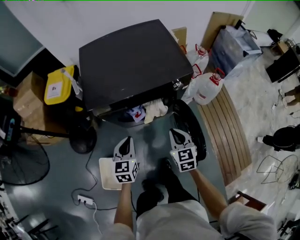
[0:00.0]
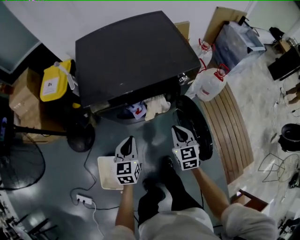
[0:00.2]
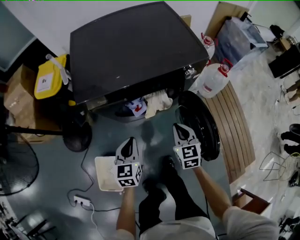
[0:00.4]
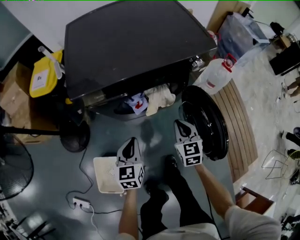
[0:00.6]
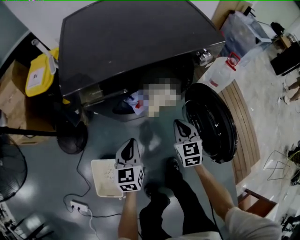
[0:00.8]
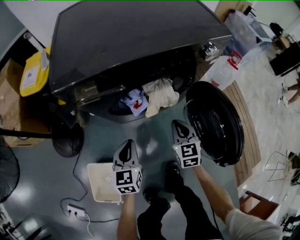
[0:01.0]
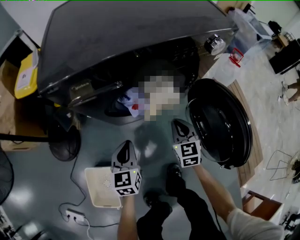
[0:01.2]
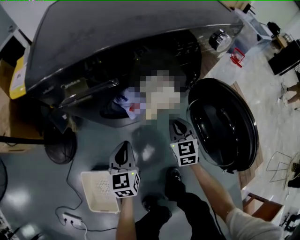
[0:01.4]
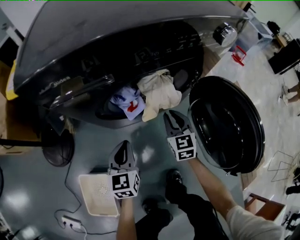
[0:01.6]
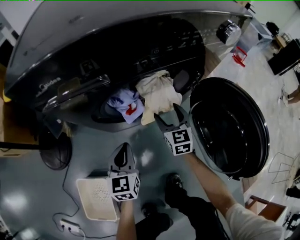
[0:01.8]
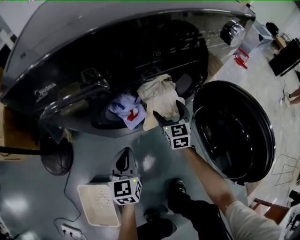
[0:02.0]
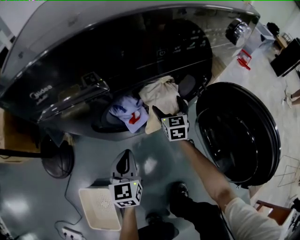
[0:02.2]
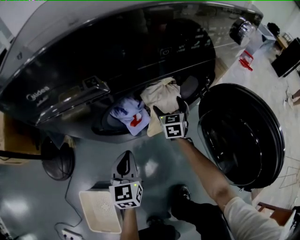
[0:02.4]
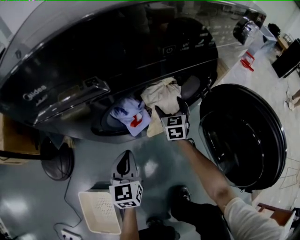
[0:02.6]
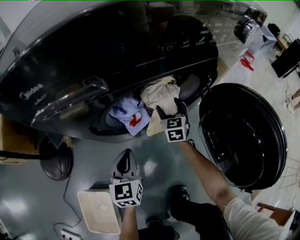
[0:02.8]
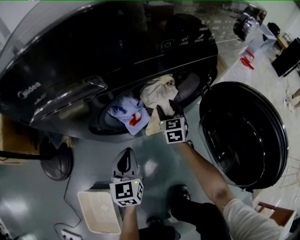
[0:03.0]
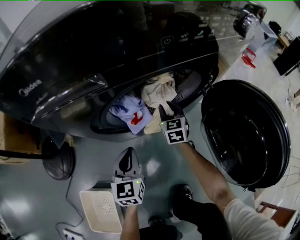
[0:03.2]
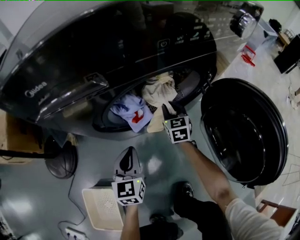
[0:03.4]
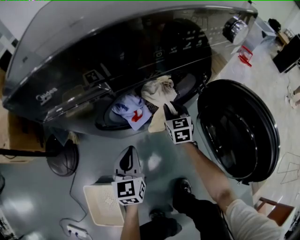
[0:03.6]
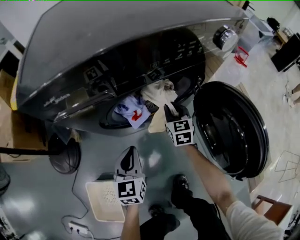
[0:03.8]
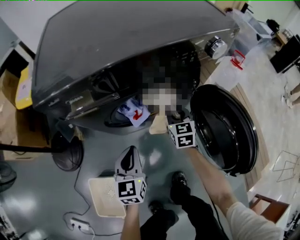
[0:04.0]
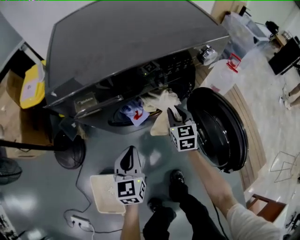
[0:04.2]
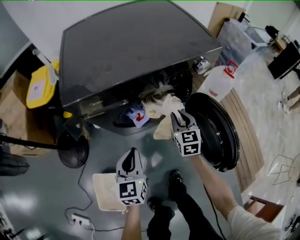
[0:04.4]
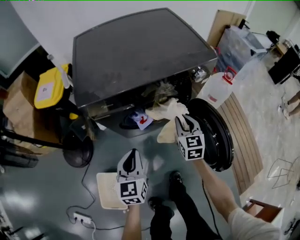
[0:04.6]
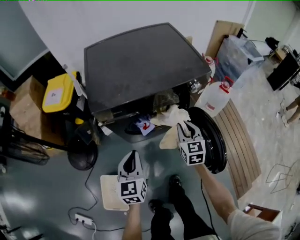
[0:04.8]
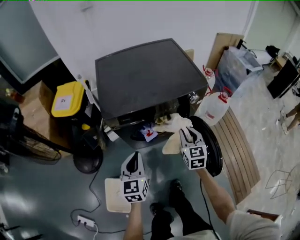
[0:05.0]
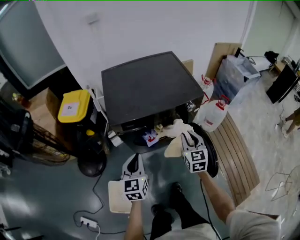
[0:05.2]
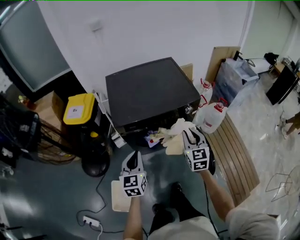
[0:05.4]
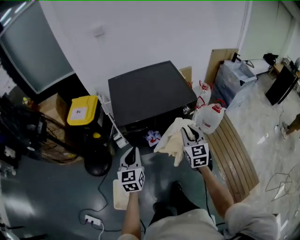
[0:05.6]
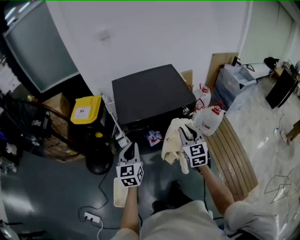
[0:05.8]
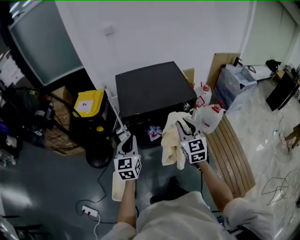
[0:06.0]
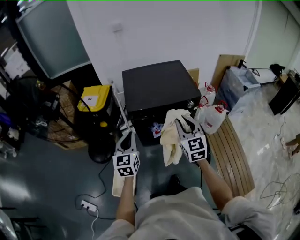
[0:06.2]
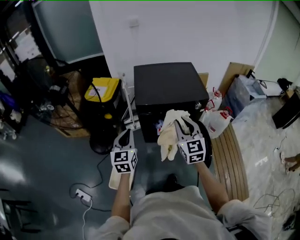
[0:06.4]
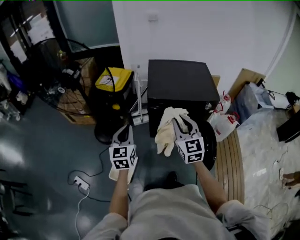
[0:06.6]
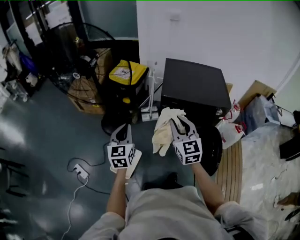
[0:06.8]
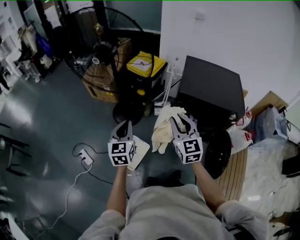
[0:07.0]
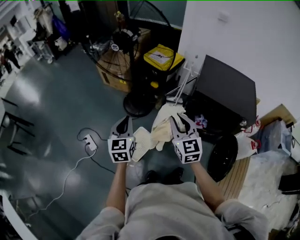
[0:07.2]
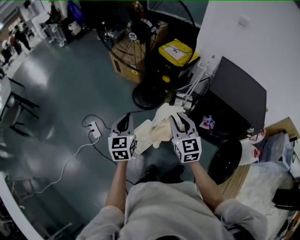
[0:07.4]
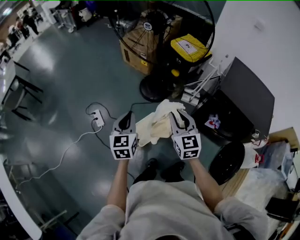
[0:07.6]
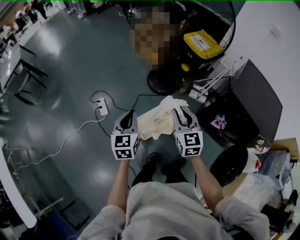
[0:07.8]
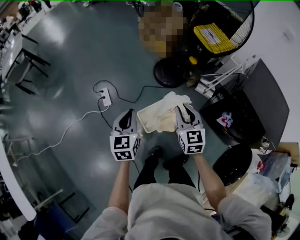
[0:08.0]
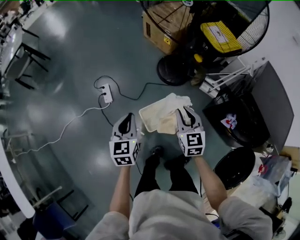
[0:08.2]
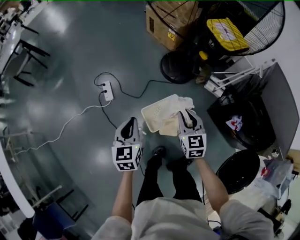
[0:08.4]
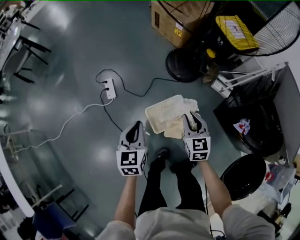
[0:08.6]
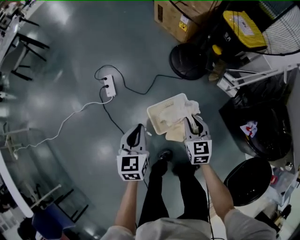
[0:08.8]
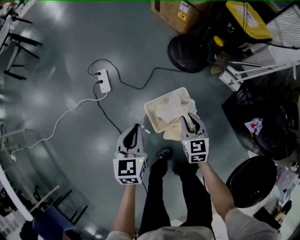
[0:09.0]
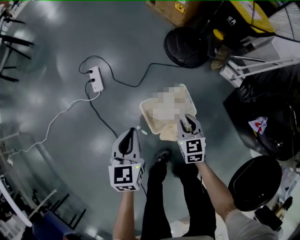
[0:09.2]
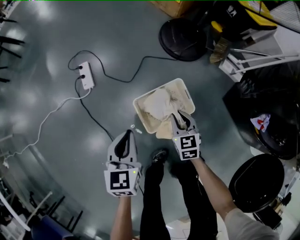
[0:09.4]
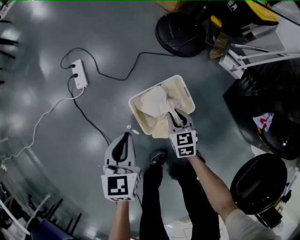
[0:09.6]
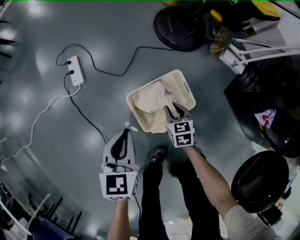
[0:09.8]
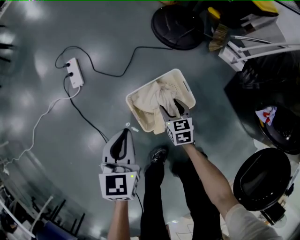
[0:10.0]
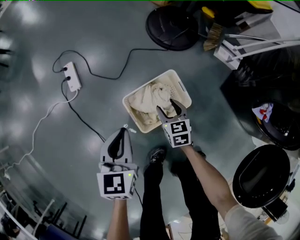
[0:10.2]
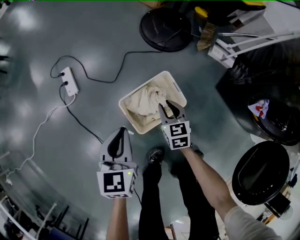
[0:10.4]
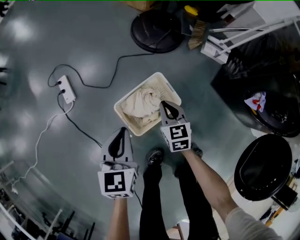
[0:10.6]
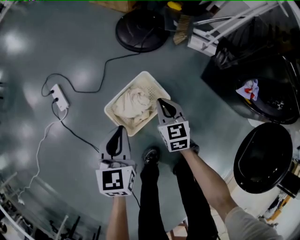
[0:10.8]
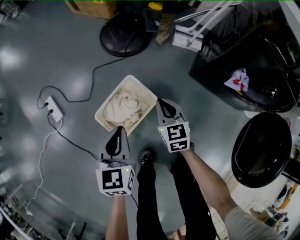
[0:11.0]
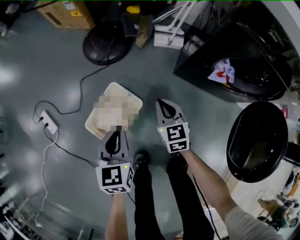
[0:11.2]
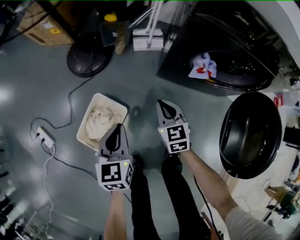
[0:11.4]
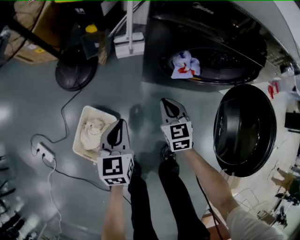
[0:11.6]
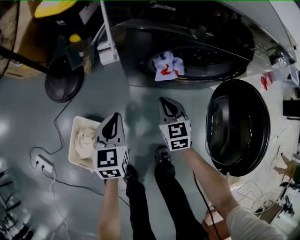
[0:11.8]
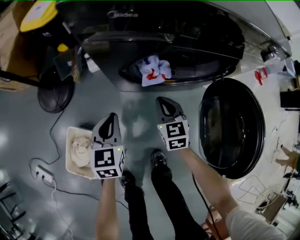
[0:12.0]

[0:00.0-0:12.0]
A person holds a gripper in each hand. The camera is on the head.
0:00.0 to 0:01.6: Both grippers travel together downward, some 35 cm.
0:01.6 to 0:03.0: The left gripper moves downward, about 10 cm; the right gripper is displaced forward and downward by approximately 20 cm, and opens its fingers.
0:03.0 to 0:04.4: The right gripper is displaced upward and backward by roughly 30 cm, while the left gripper moves upward, approximately 25 cm.
0:04.4 to 0:06.0: The grippers both shift upward by about 50 cm. The right gripper changes its angle by about 20 degrees.
0:06.0 to 0:07.6: The pair of grippers is taken approximately 50 cm. The right gripper turns by approximately 50 degrees. The left gripper rotates approximately 50 degrees.
0:07.6 to 0:09.0: Both grippers move downward, about 40 cm. The right gripper changes its angle by roughly 20 degrees.
0:09.0 to 0:10.4: Both grippers move downward, some 20 cm.
0:10.4 to 0:12.0: The two grippers travel together, approximately 60 cm. The right gripper turns by some 40 degrees. The left gripper rotates roughly 50 degrees.

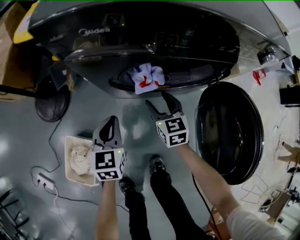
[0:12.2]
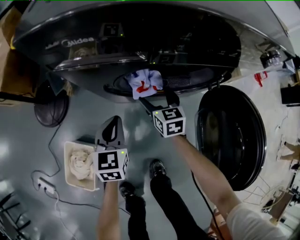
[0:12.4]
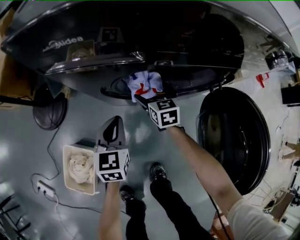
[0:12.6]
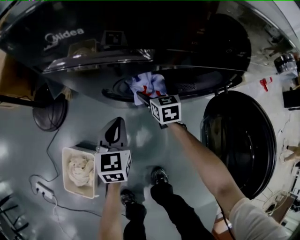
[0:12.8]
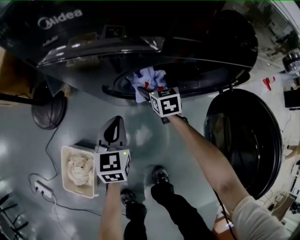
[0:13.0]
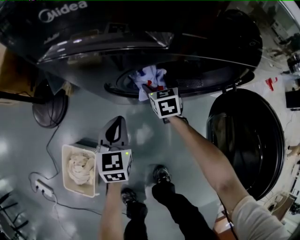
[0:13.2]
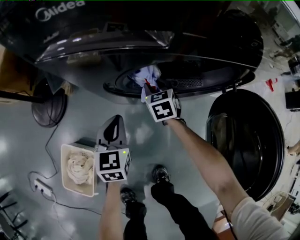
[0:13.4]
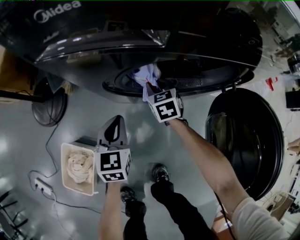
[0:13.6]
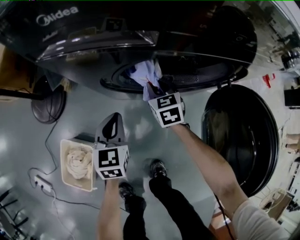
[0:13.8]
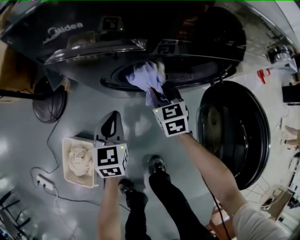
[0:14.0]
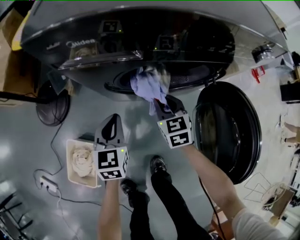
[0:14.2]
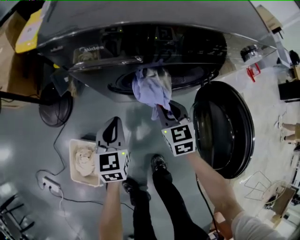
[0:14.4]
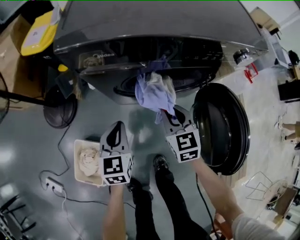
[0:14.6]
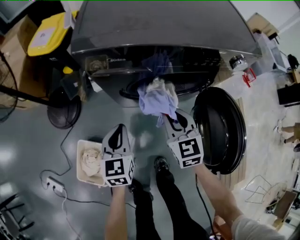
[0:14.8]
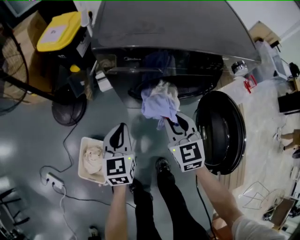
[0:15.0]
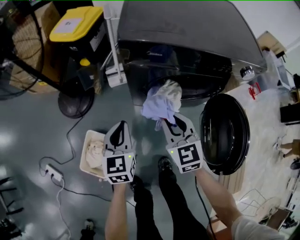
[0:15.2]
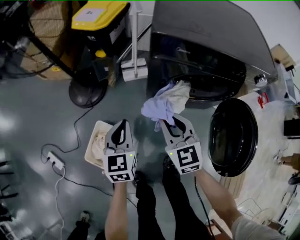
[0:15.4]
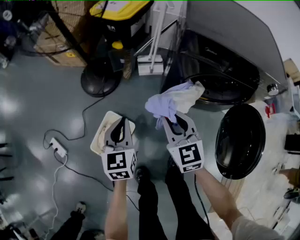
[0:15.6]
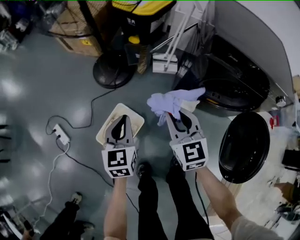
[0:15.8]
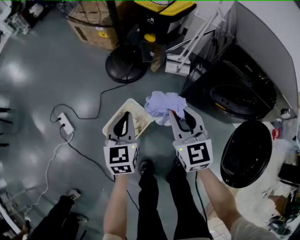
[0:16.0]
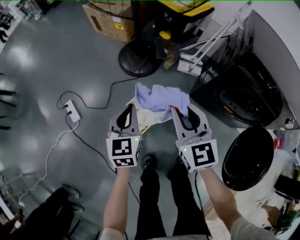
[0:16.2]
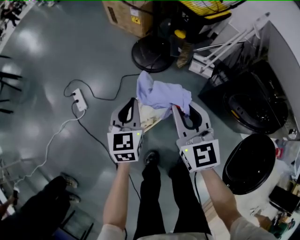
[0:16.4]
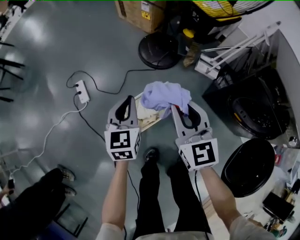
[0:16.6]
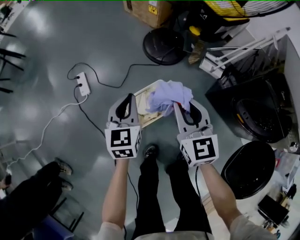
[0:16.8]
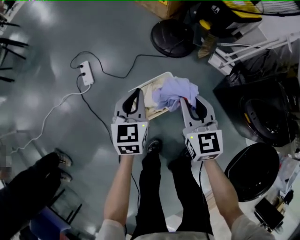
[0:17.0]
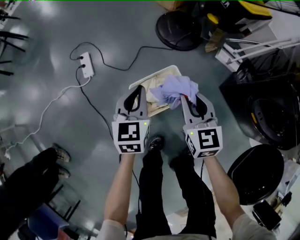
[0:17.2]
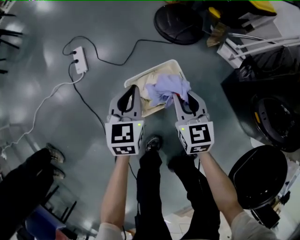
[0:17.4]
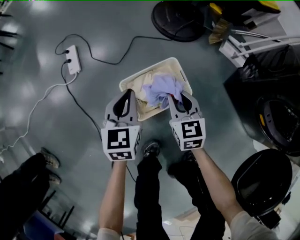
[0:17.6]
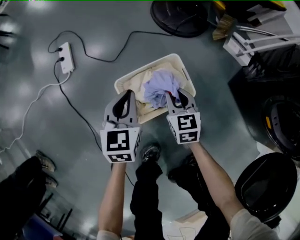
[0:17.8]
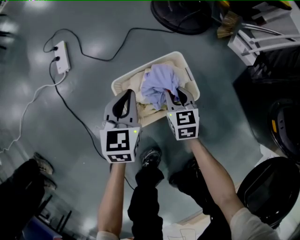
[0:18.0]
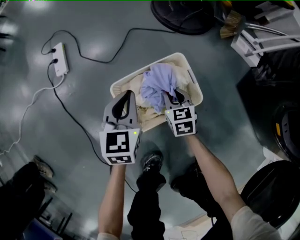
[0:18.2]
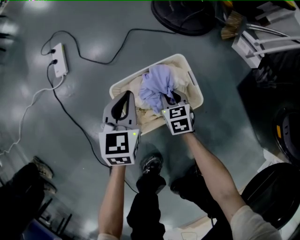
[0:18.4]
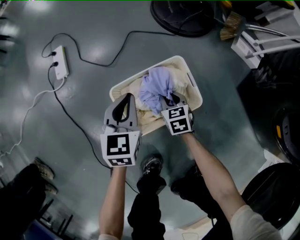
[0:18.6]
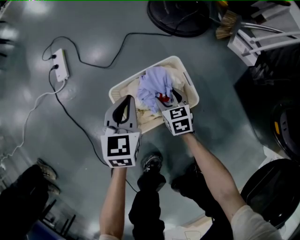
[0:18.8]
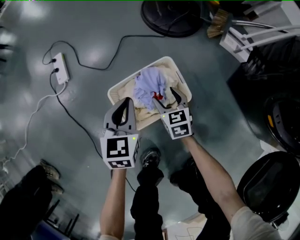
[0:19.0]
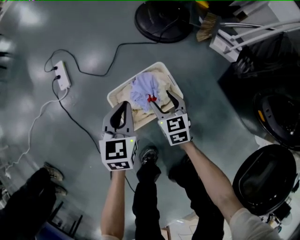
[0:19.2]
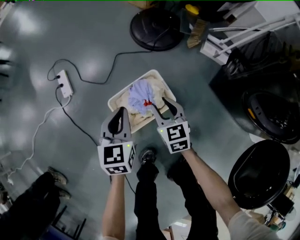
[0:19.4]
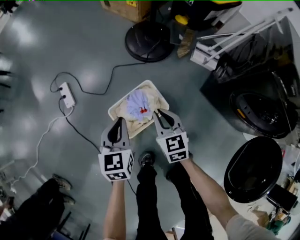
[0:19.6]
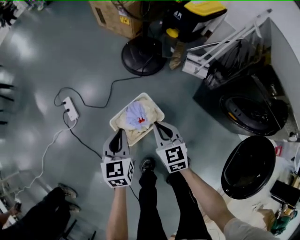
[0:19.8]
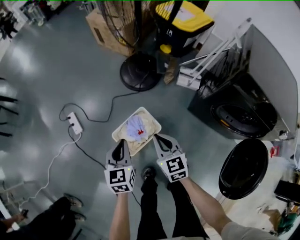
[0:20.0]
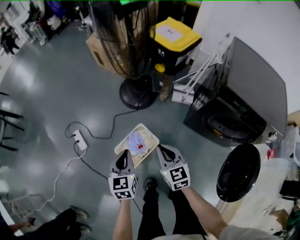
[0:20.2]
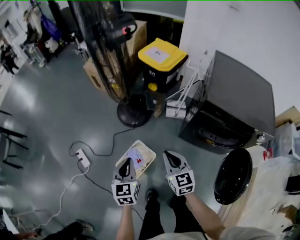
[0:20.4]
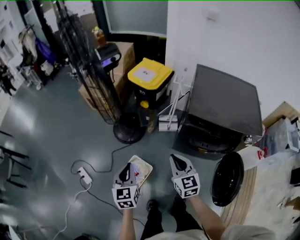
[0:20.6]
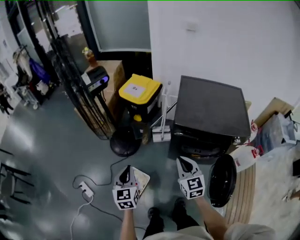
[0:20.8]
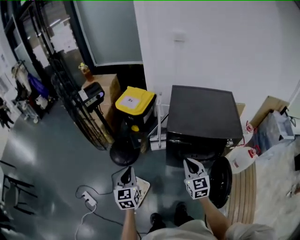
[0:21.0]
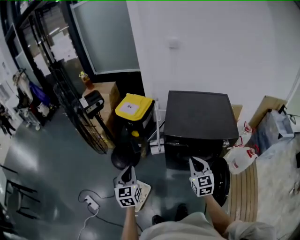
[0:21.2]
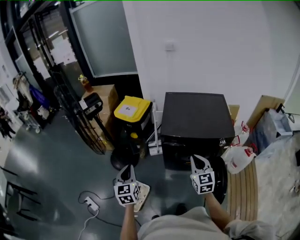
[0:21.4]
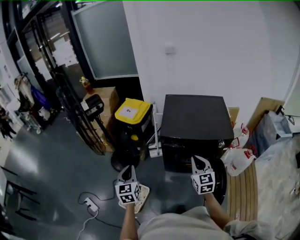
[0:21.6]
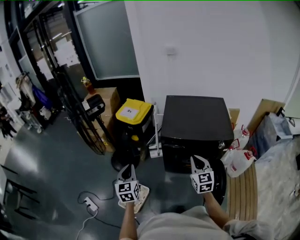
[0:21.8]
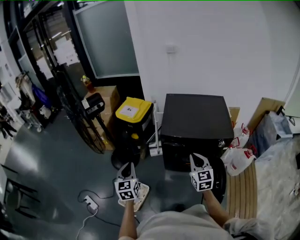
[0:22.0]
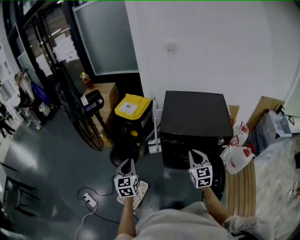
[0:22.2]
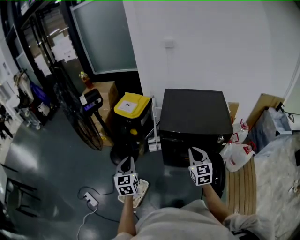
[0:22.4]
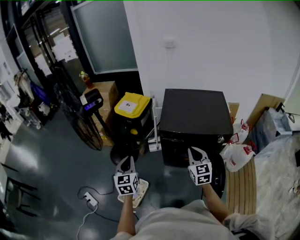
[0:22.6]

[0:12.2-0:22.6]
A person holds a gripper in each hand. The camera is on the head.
0:12.2 to 0:13.6: The left gripper shifts about 5 cm downward; the right gripper is displaced downward and forward by approximately 15 cm, and opens, then closes again.
0:13.6 to 0:15.2: The left gripper is displaced upward, to the left and backward by some 25 cm; the right gripper is displaced upward and backward by roughly 40 cm, and turns by roughly 20 degrees.
0:15.2 to 0:16.6: The two grippers travel together, roughly 40 cm. The right gripper swivels some 40 degrees. Meanwhile the left gripper swivels approximately 40 degrees.
0:16.6 to 0:18.2: The right gripper shifts approximately 60 cm downward, and turns by roughly 30 degrees, while the left gripper shifts some 40 cm downward.
0:18.2 to 0:19.6: The two grippers go some 30 cm upward. The right gripper opens and closes again.
0:19.6 to 0:21.2: The two grippers go some 50 cm upward. The left gripper rotates roughly 30 degrees; the right gripper changes its angle by approximately 50 degrees.
0:21.2 to 0:22.6: The grippers stay close to where they were, moving slightly.

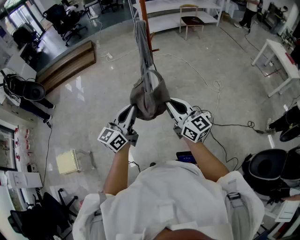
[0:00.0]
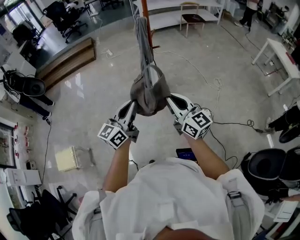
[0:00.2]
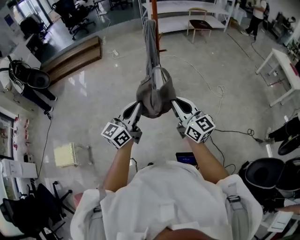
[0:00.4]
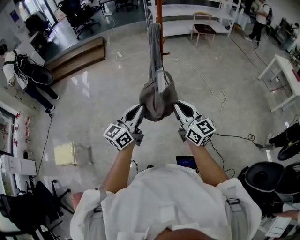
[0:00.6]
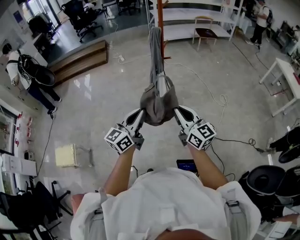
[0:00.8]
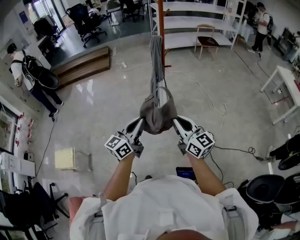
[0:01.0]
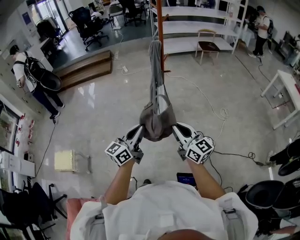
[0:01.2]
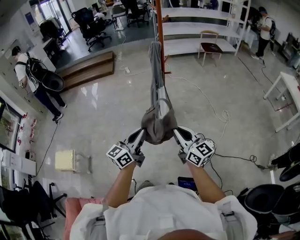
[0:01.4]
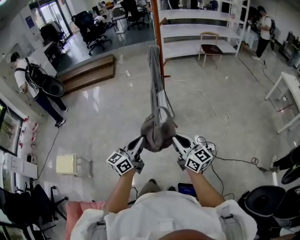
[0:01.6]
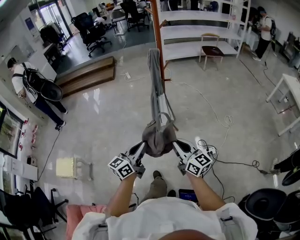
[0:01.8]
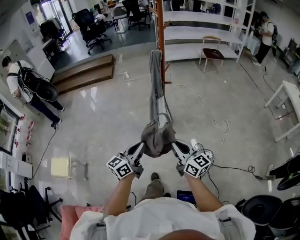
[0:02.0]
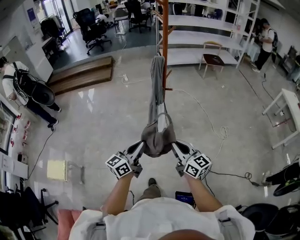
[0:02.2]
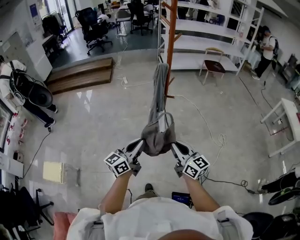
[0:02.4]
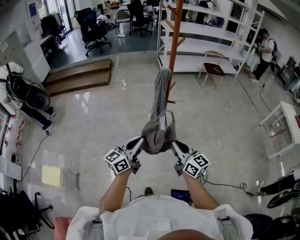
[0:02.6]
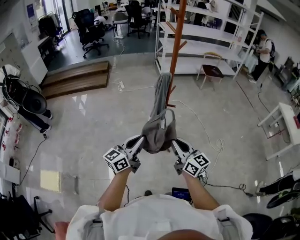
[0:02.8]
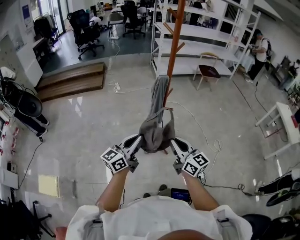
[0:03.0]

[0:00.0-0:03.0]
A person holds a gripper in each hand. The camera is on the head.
0:00.0 to 0:01.6: The two grippers go some 10 cm to the right and downward.
0:01.6 to 0:03.0: The two grippers go some 30 cm forward.
